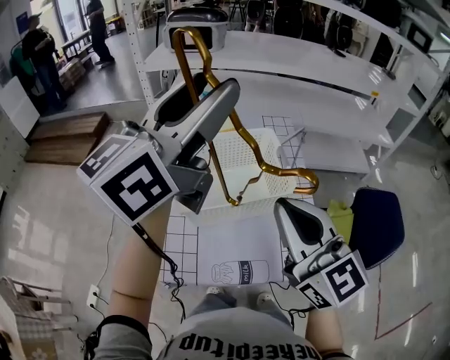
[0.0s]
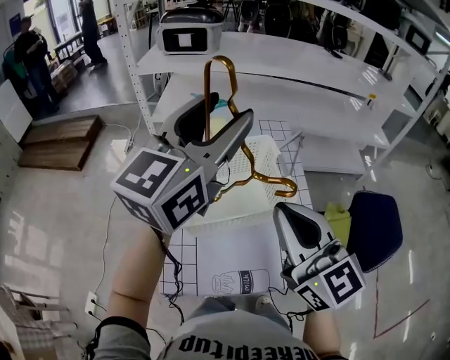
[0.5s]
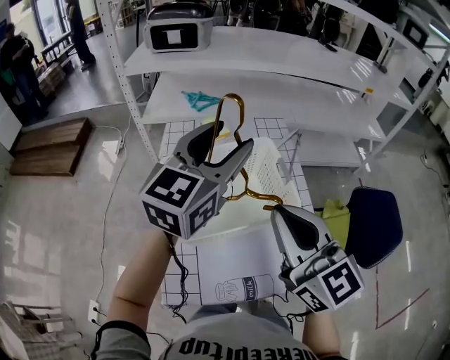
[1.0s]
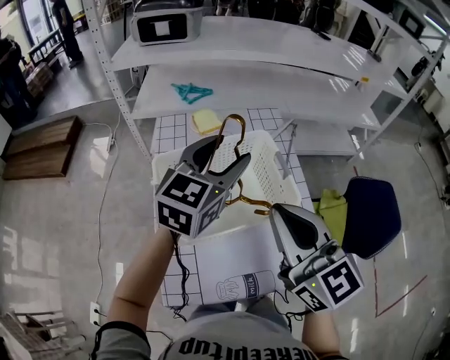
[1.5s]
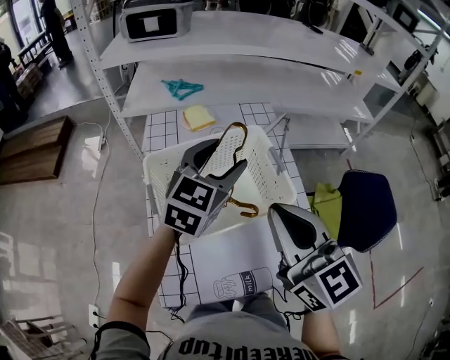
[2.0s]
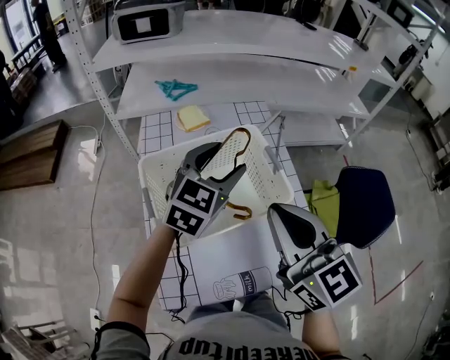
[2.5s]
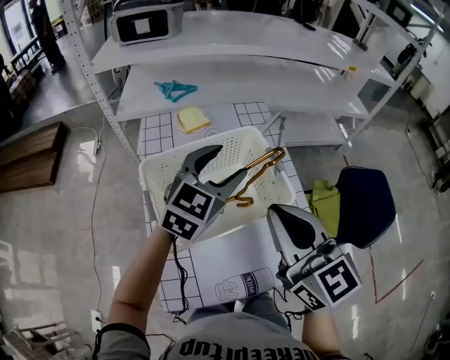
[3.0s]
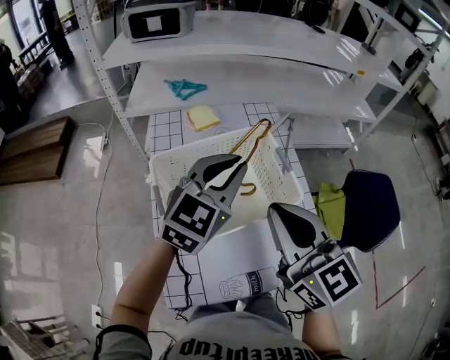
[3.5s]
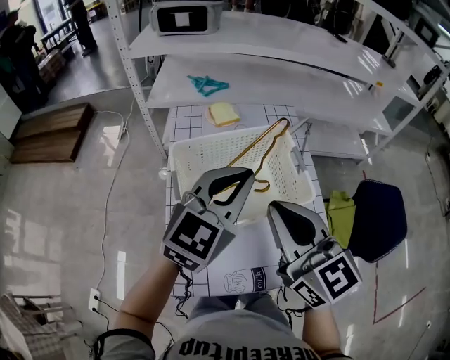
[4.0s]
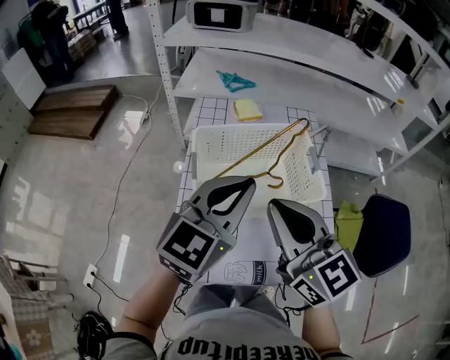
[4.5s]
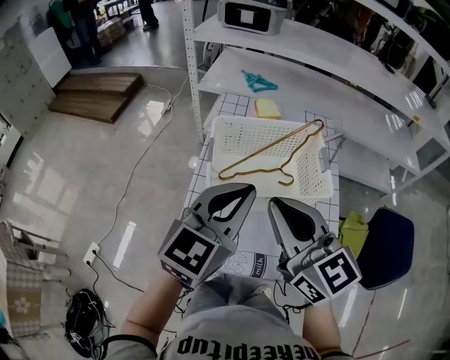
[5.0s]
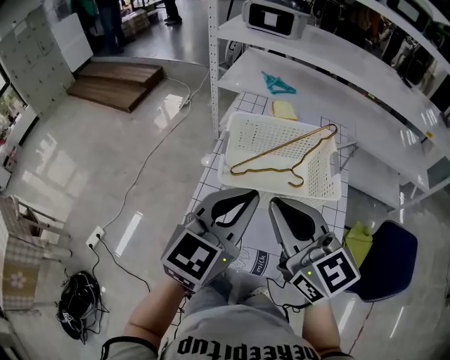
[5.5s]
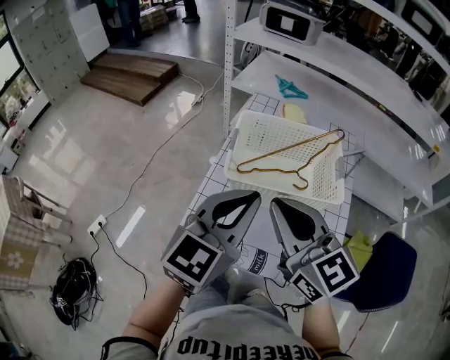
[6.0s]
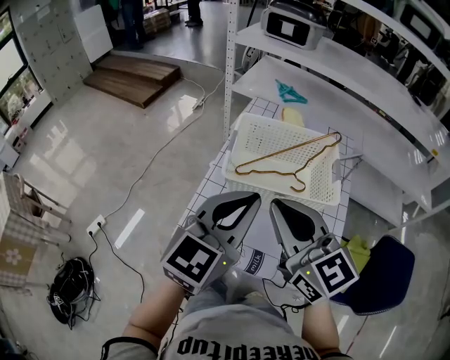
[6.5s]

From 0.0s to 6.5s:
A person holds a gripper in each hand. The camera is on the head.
From 0.0s to 2.0s: The left gripper heads downward and forward, covering roughly 30 cm, and points its fingers roughly 30 degrees further downward, while the right gripper is displaced forward by some 10 cm.
From 2.0s to 4.5s: The left gripper is displaced backward by about 15 cm, and closes its fingers, while the right gripper heads to the left, covering some 5 cm.
From 4.5s to 6.5s: The right gripper goes about 5 cm backward. Meanwhile the left gripper shifts some 10 cm backward.

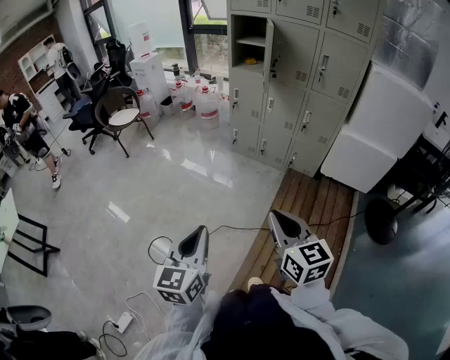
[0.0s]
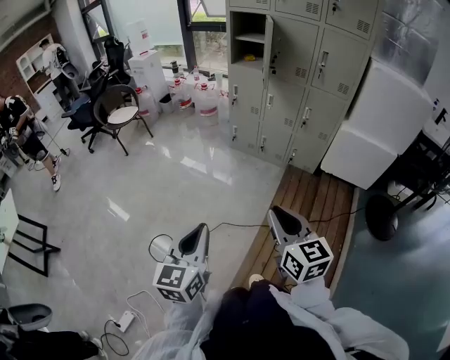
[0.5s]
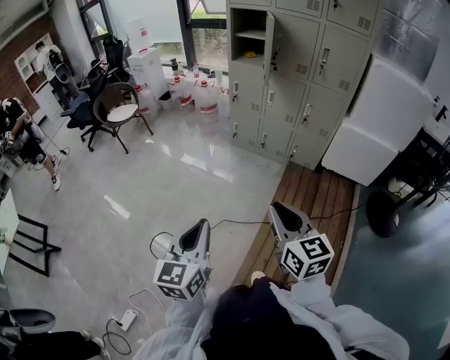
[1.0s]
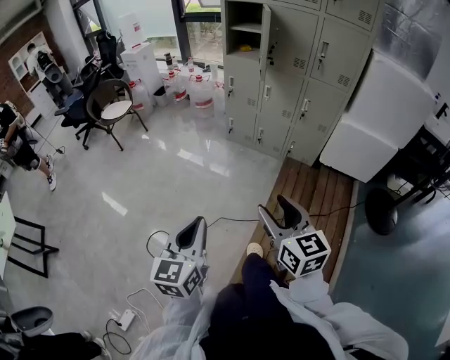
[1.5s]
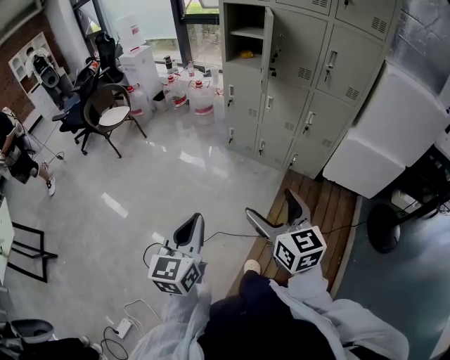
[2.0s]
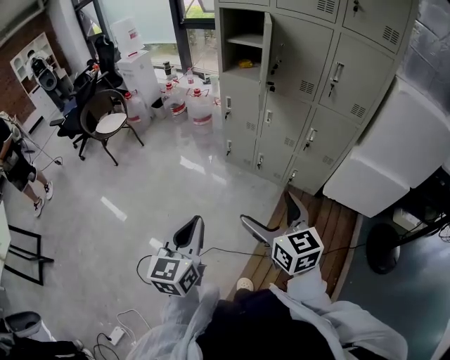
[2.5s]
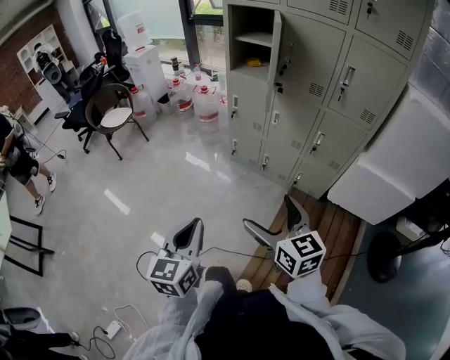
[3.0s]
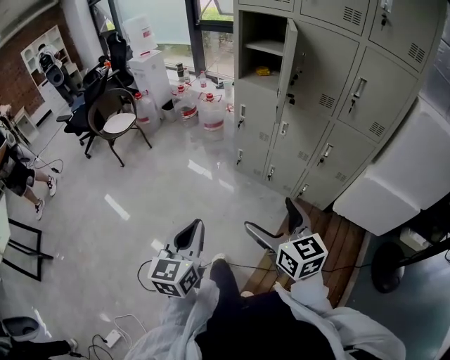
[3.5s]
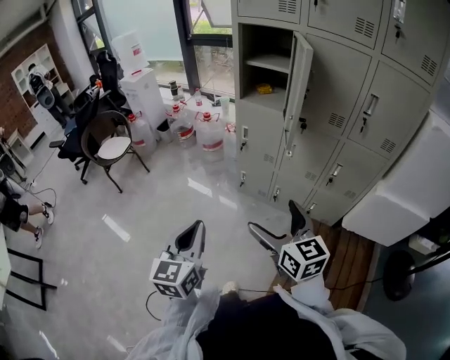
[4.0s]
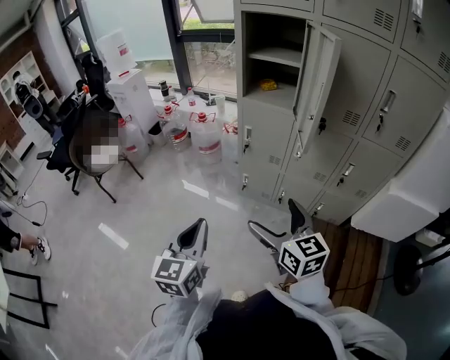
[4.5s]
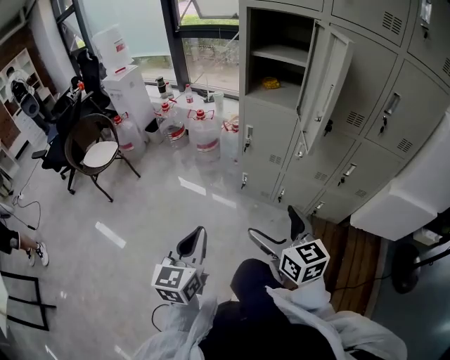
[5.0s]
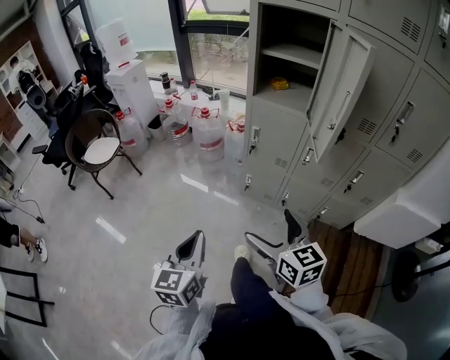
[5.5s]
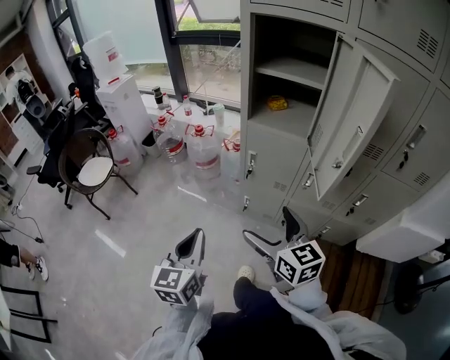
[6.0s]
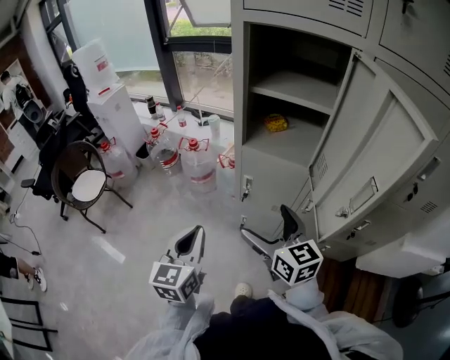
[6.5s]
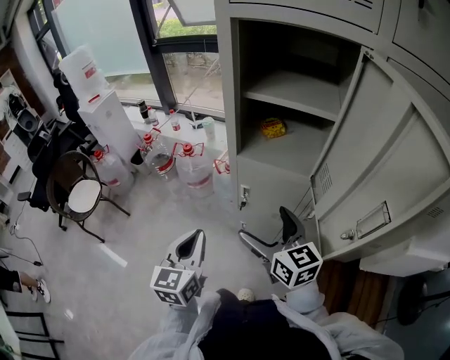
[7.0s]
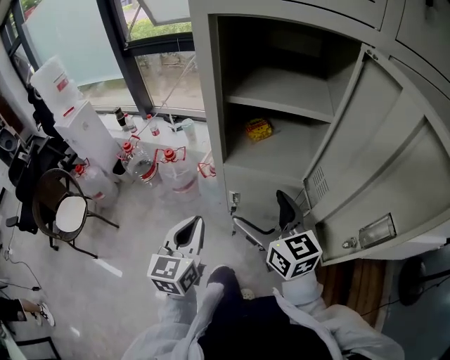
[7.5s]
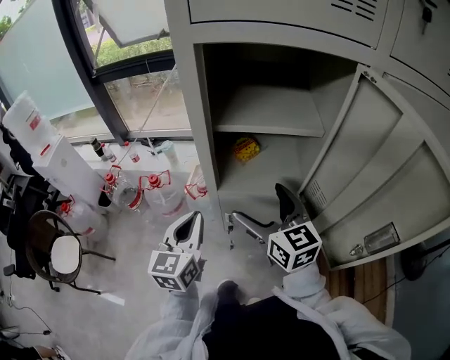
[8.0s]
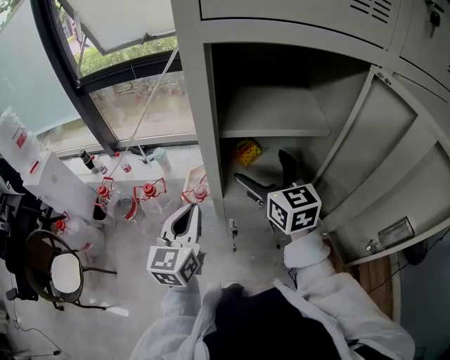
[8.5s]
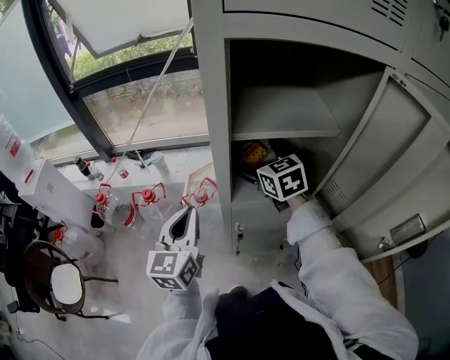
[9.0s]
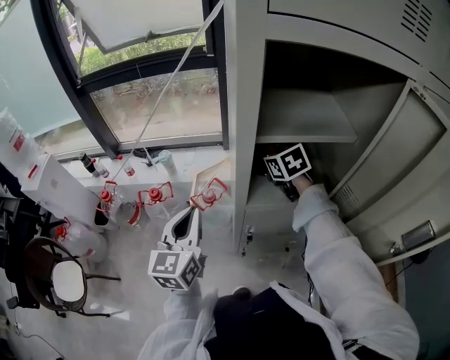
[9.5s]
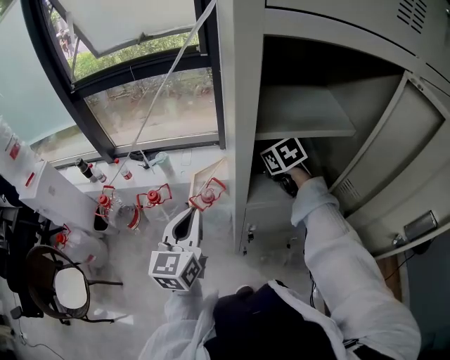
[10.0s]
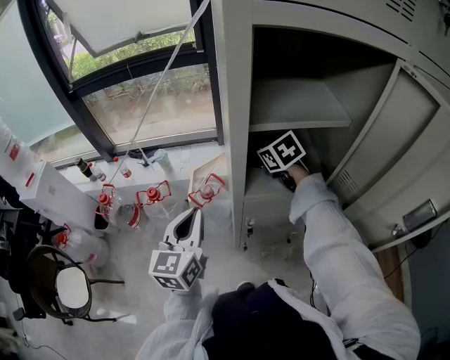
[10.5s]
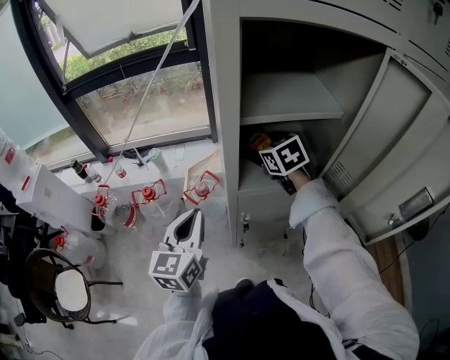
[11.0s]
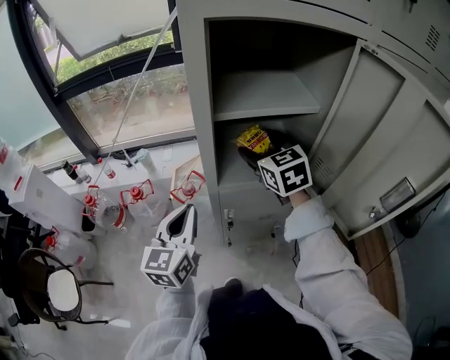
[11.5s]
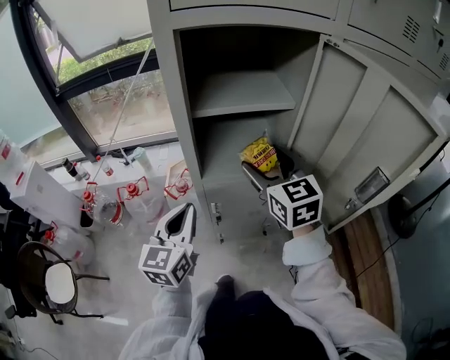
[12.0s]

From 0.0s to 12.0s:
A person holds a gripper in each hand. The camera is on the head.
From 0.0s to 2.0s: Both grippers travel together forward, roughly 15 cm. The right gripper opens its fingers.
From 2.0s to 4.0s: The two grippers go some 30 cm forward.
From 4.0s to 6.0s: The grippers both shift forward by approximately 25 cm.
From 6.0s to 8.0s: The two grippers go approximately 35 cm forward. The left gripper changes its angle by some 20 degrees.
From 8.0s to 10.0s: The right gripper shifts about 25 cm forward and downward, and tips its fingers downward by about 40 degrees. The left gripper shifts roughly 10 cm forward and to the left.
From 10.0s to 12.0s: The left gripper is displaced to the right and backward by about 15 cm, while the right gripper travels backward, upward and to the right by about 25 cm, angles its fingers upward, by roughly 30 degrees, and closes.

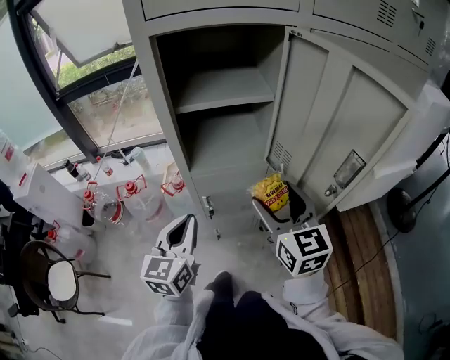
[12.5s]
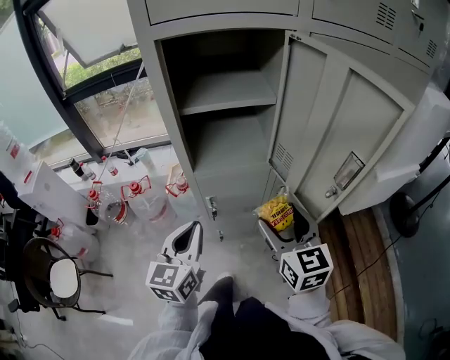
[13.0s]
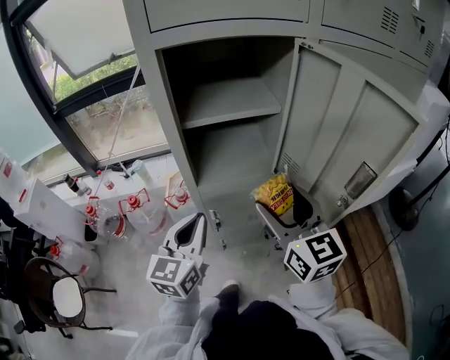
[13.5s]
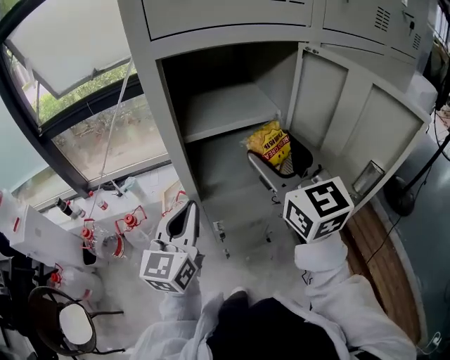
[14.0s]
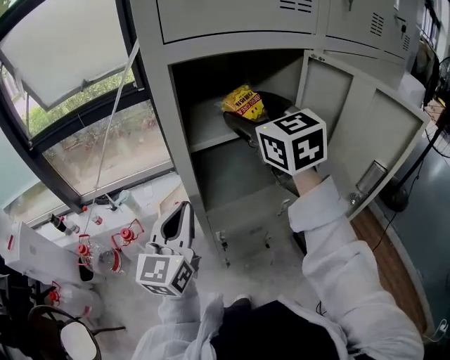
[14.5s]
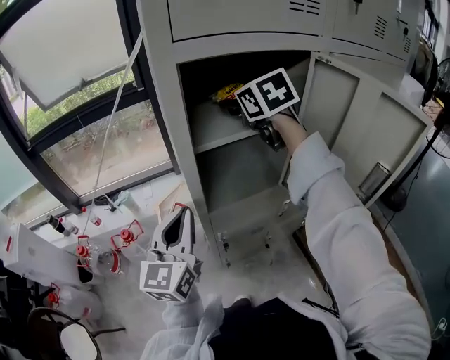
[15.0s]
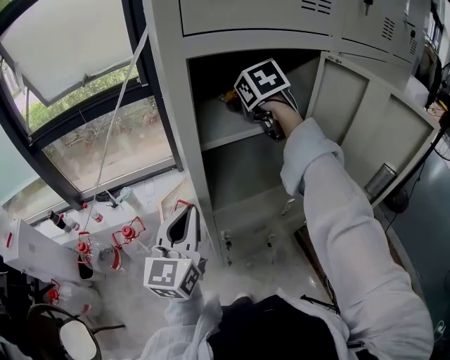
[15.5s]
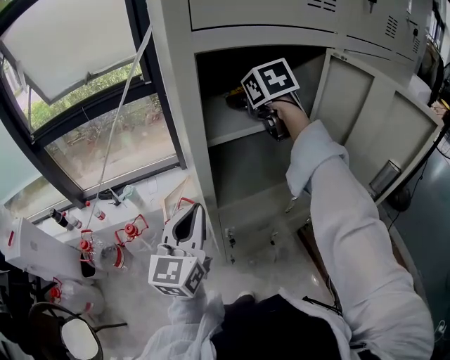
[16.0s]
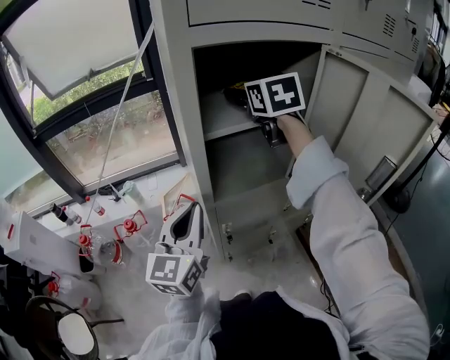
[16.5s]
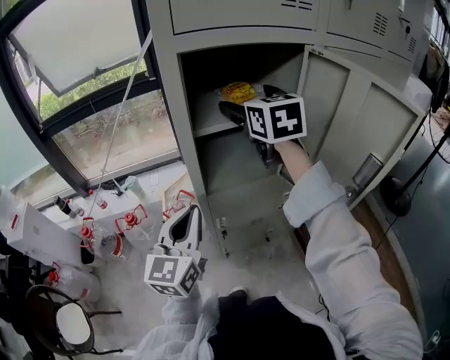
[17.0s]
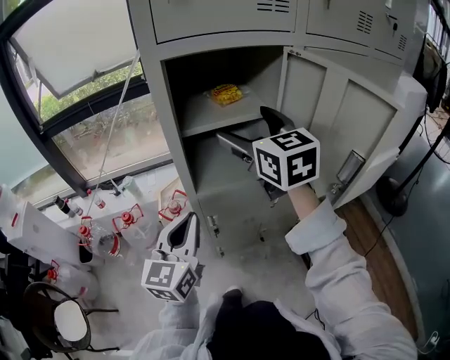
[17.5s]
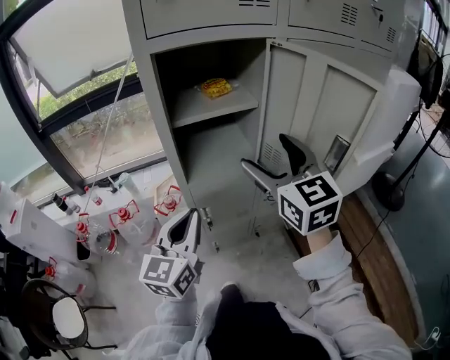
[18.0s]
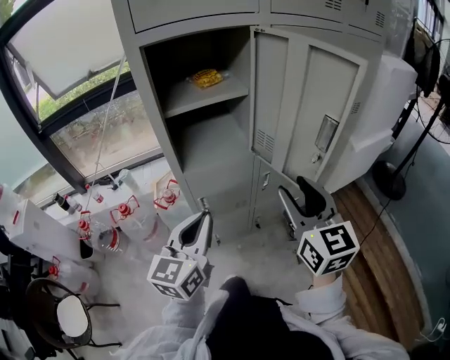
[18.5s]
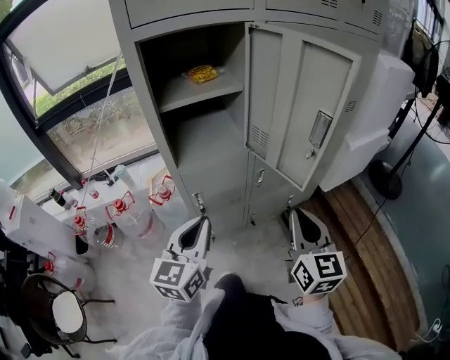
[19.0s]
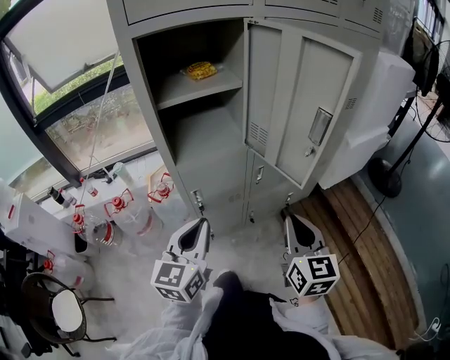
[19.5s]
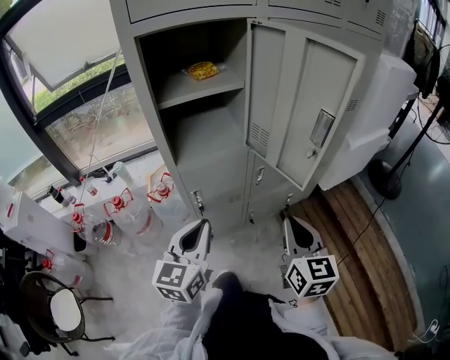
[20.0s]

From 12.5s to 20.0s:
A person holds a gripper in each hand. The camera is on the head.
From 12.5s to 14.5s: The right gripper moves forward, upward and to the left, some 30 cm. Meanwhile the left gripper travels forward, upward and to the left by approximately 15 cm.
From 14.5s to 16.5s: The right gripper heads forward, covering approximately 10 cm.
From 16.5s to 18.0s: The right gripper moves backward, roughly 25 cm, while the left gripper travels backward and to the right by about 10 cm.
From 18.0s to 20.0s: The left gripper travels downward, to the right and backward by roughly 10 cm. The right gripper moves downward, backward and to the right, roughly 25 cm, swivels some 20 degrees, and closes.

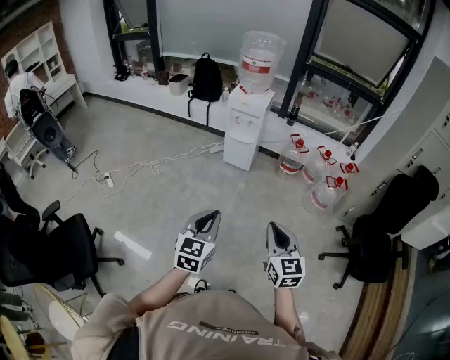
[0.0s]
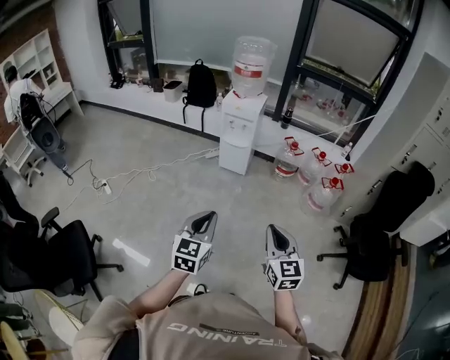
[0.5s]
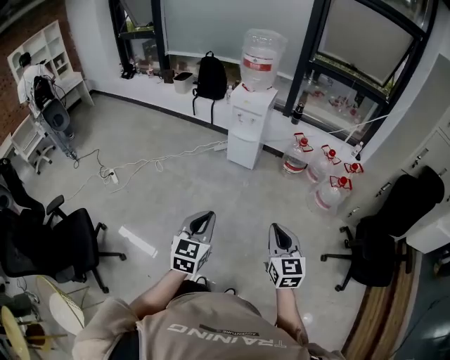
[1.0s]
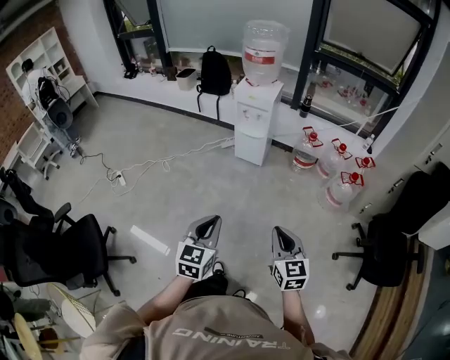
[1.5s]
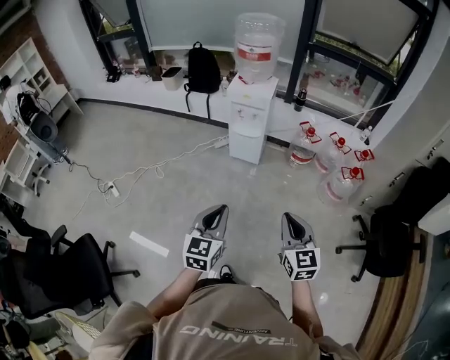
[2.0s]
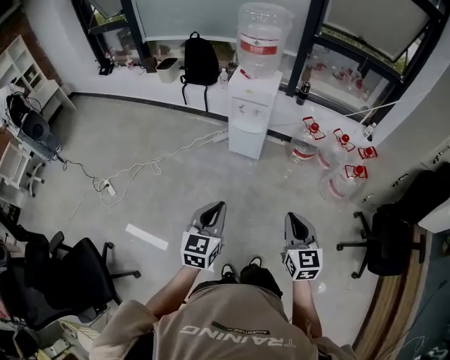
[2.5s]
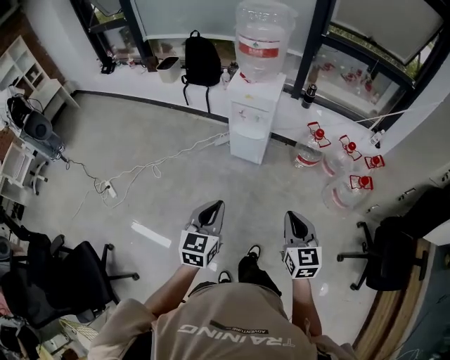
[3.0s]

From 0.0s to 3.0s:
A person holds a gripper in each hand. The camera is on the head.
From 0.0s to 1.5s: The right gripper moves downward, roughly 5 cm.
From 1.5s to 3.0s: Both grippers travel together forward, some 25 cm.
